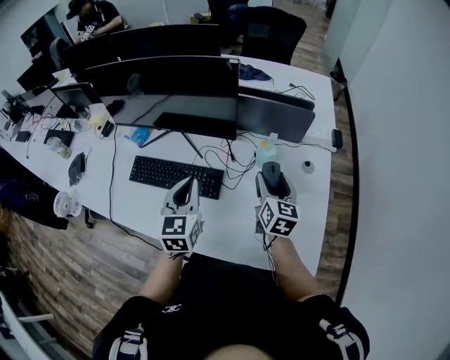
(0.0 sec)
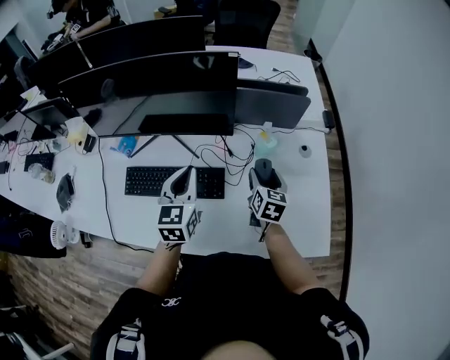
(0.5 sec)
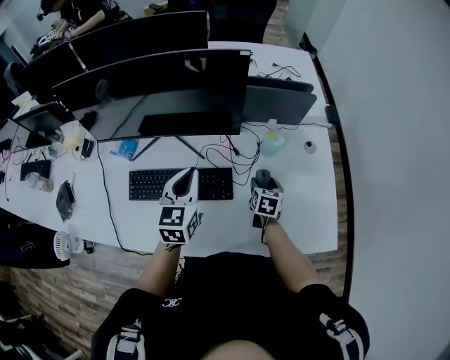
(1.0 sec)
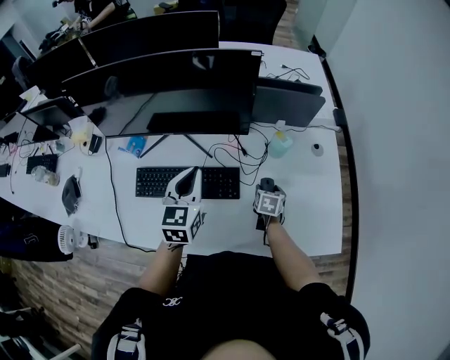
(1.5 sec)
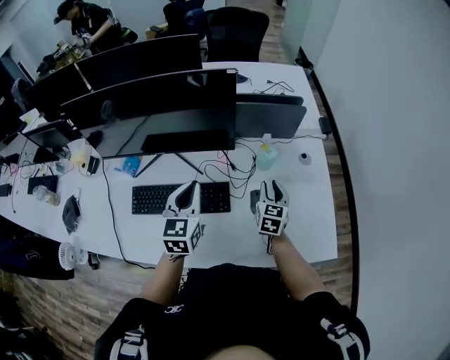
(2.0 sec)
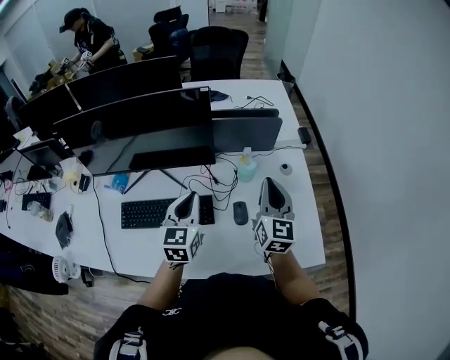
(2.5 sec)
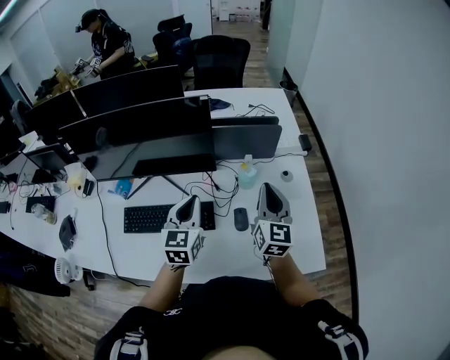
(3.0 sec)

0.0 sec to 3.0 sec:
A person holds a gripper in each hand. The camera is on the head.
0.0 sec to 1.5 sec: The right gripper travels downward by roughly 25 cm, and angles its fingers downward, by about 30 degrees. The left gripper travels to the left and forward by approximately 15 cm.
1.5 sec to 3.0 sec: The right gripper shifts approximately 35 cm upward, points its fingers some 50 degrees further upward, and closes, while the left gripper travels to the right by some 10 cm.

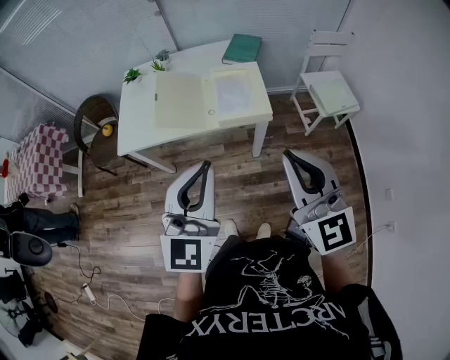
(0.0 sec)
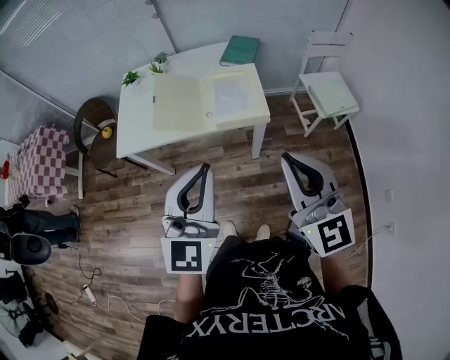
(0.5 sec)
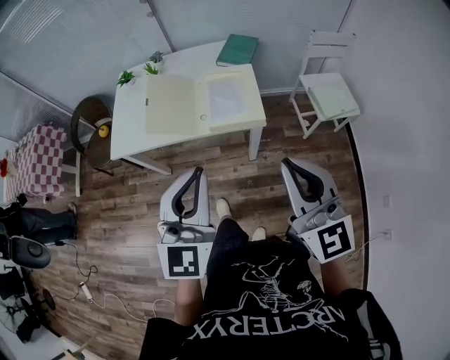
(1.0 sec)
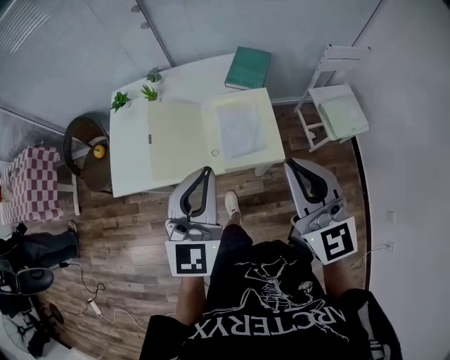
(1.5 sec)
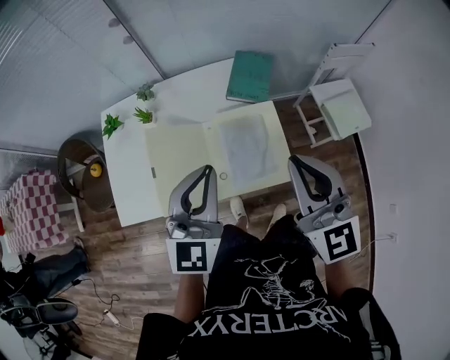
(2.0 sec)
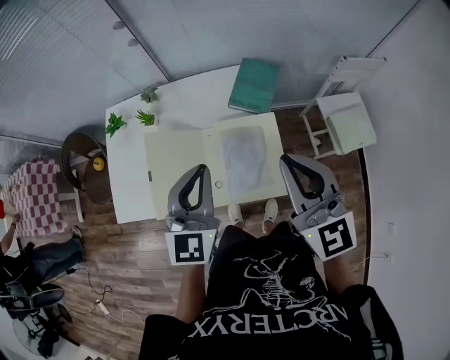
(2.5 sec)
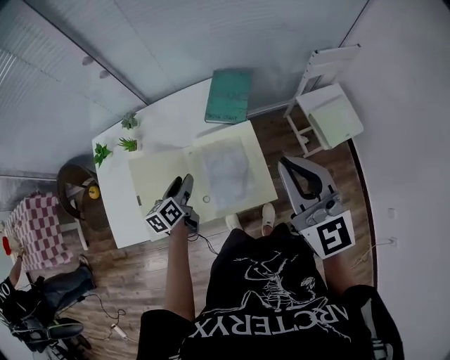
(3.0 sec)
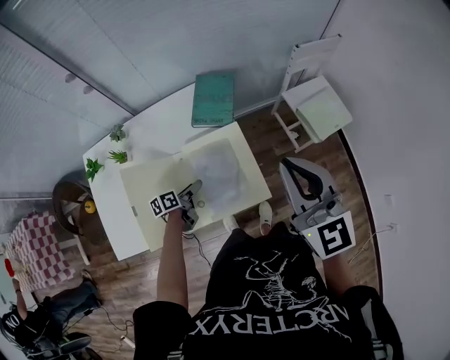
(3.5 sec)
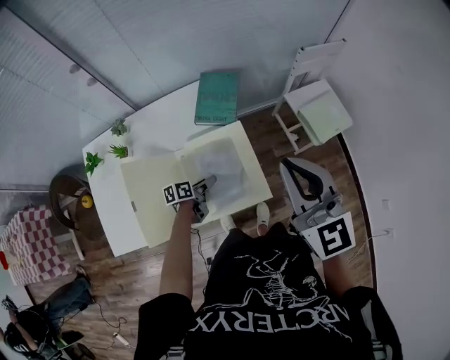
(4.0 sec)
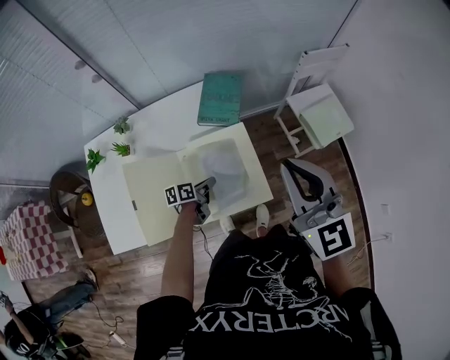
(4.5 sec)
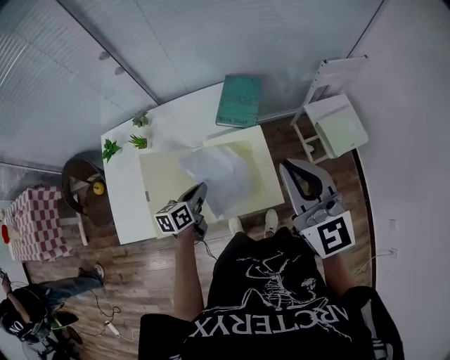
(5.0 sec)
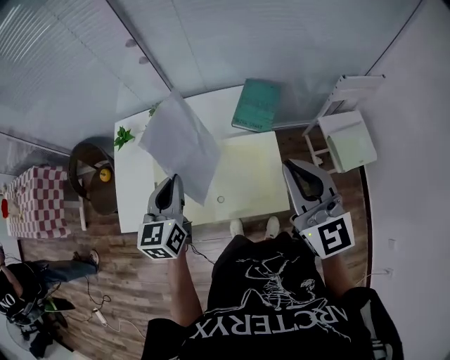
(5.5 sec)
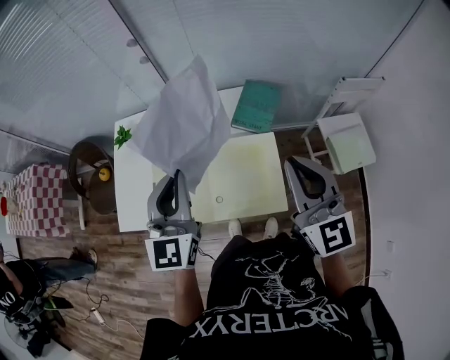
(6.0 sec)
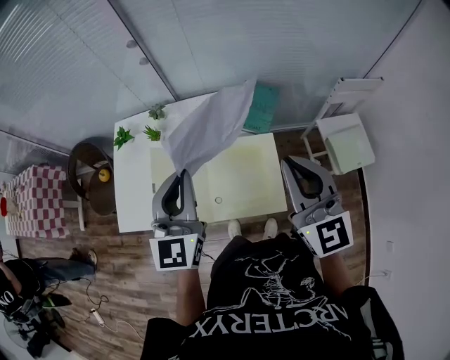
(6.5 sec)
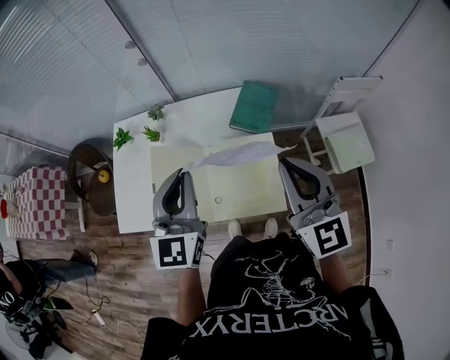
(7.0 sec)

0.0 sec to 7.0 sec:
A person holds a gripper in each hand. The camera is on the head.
0.0 sec to 2.0 sec: Both grippers move forward, about 35 cm.
2.0 sec to 3.5 sec: The right gripper ends up roughly 10 cm from where it was, while the left gripper moves downward, about 35 cm, rolls counterclockwise, seen from behind, by roughly 70 degrees, and opens up.
3.5 sec to 5.0 sec: The left gripper is displaced upward by approximately 10 cm, swivels approximately 20 degrees, and closes up.
5.0 sec to 7.0 sec: The left gripper travels upward by some 30 cm, and swivels roughly 60 degrees.

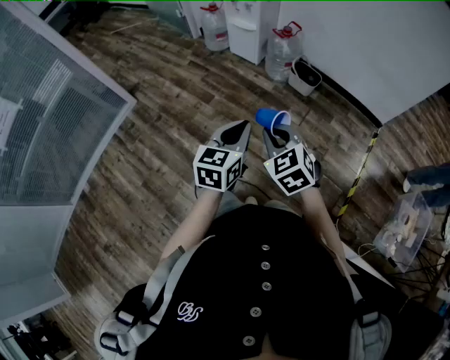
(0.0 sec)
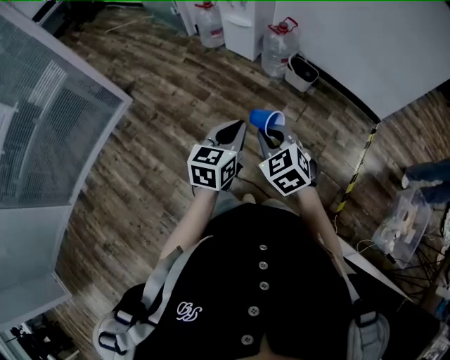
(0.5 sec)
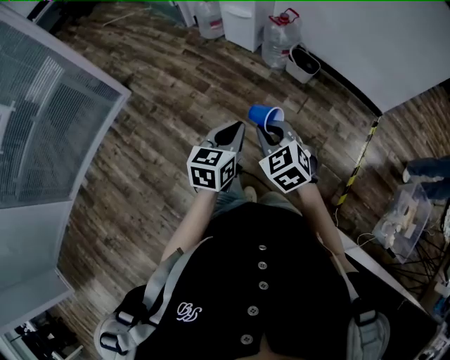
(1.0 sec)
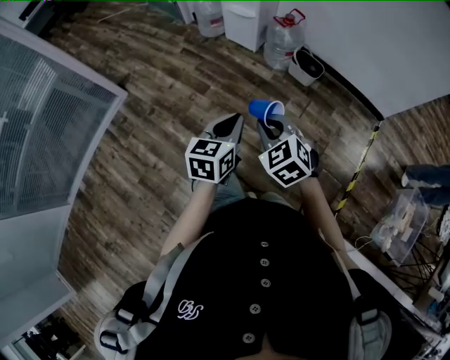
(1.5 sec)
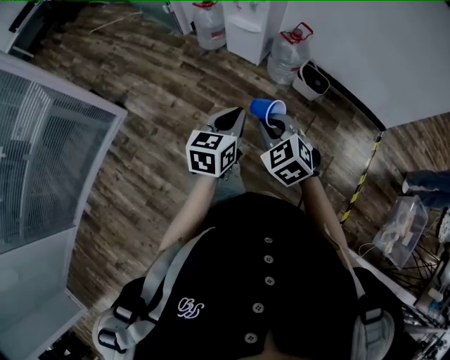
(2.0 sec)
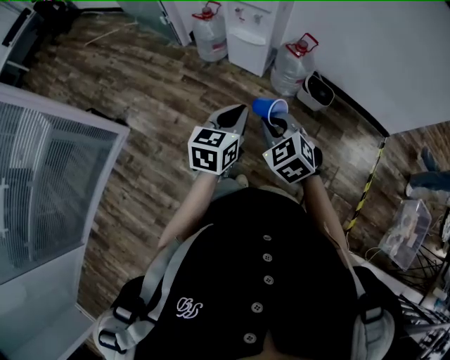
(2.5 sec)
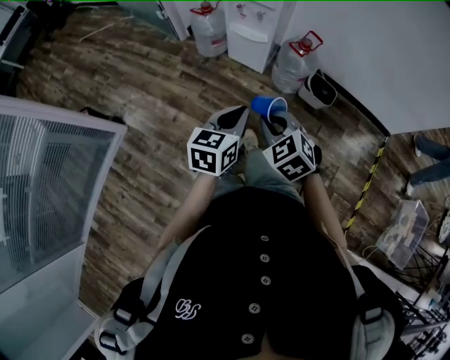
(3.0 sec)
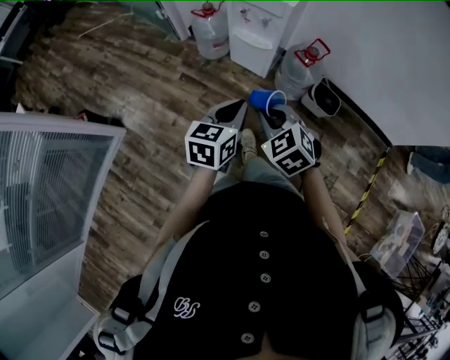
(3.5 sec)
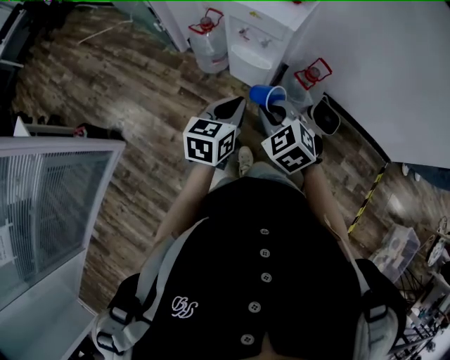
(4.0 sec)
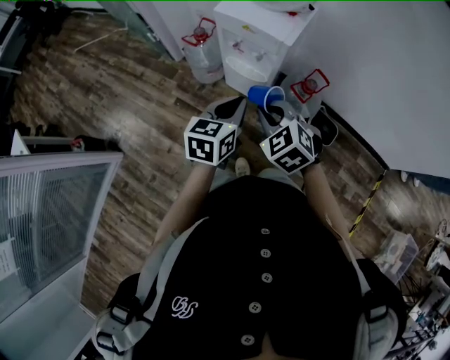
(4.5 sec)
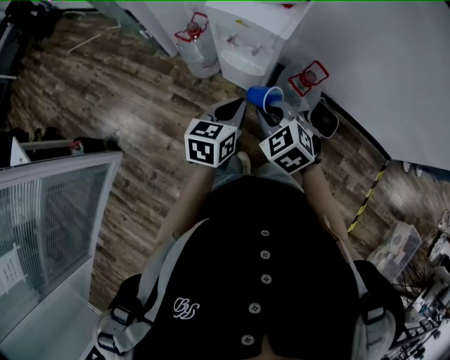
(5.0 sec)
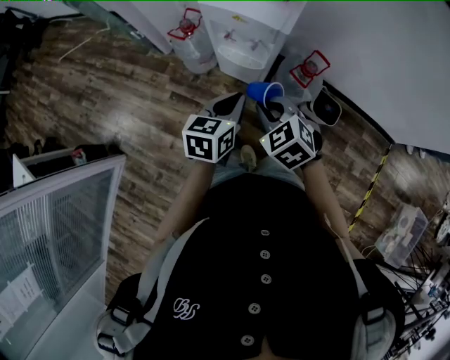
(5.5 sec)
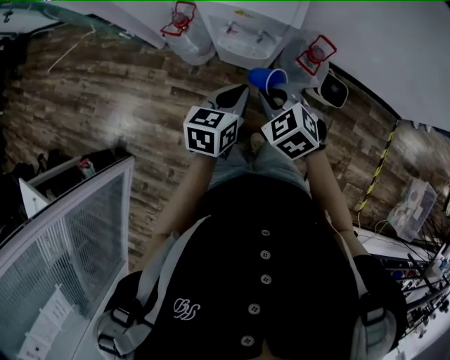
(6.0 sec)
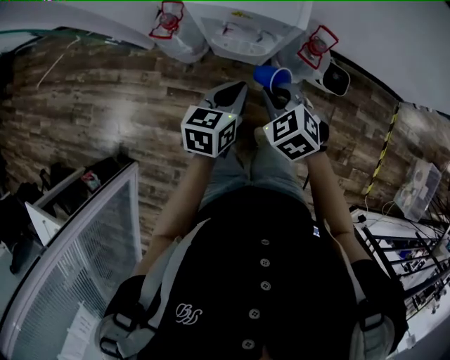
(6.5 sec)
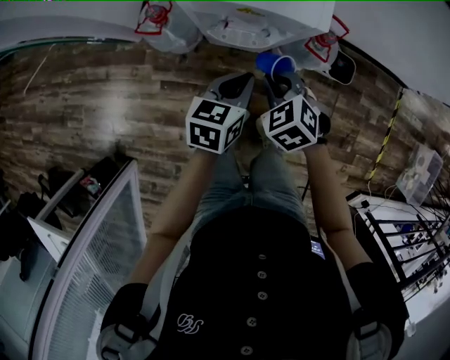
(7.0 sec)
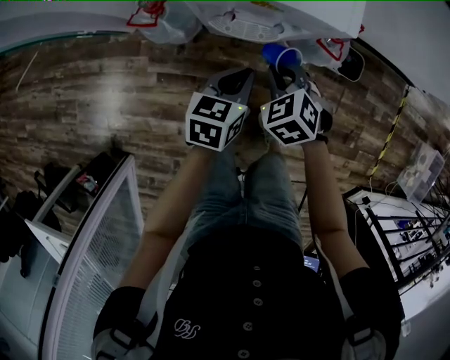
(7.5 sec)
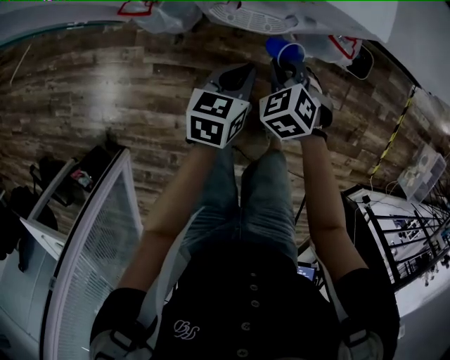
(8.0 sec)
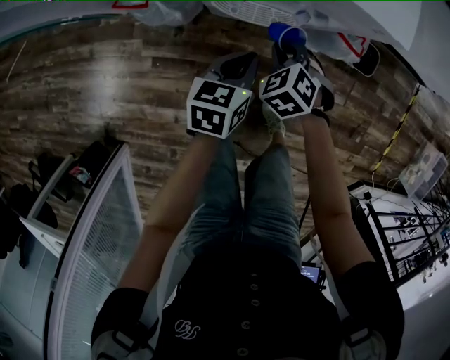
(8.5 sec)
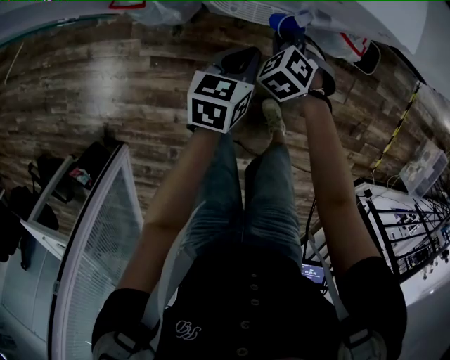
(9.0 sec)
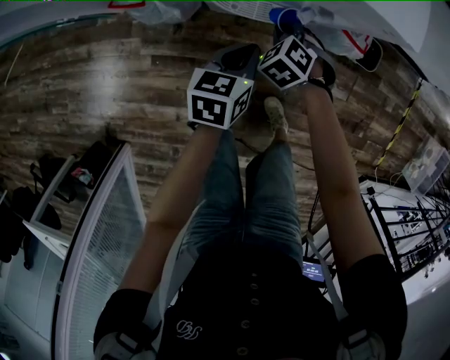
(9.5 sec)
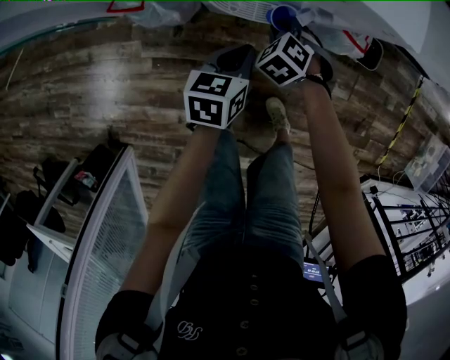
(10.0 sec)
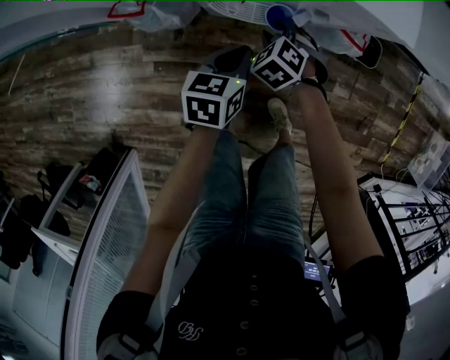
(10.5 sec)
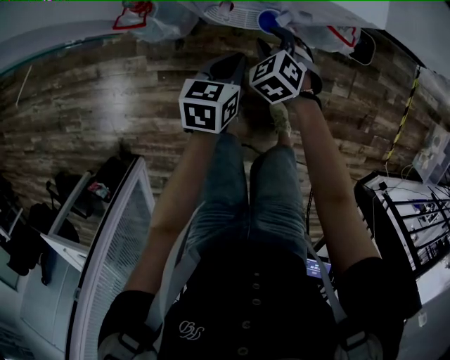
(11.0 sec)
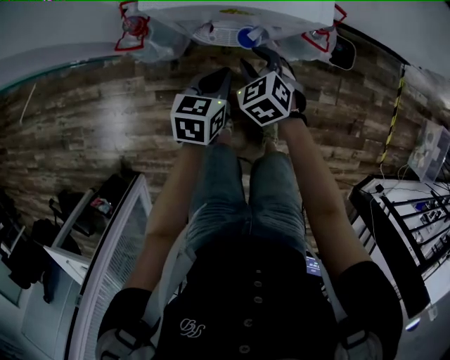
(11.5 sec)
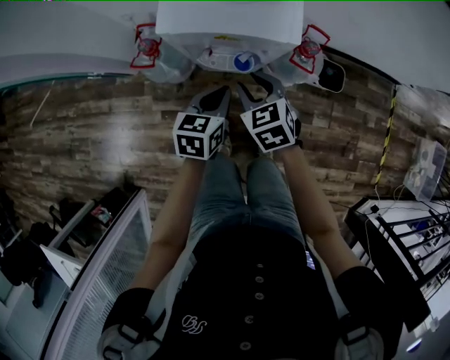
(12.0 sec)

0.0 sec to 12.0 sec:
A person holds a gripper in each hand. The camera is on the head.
0.0 sec to 2.0 sec: Both grippers travel together forward, approximately 25 cm.
2.0 sec to 4.0 sec: Both grippers move forward, roughly 40 cm.
4.0 sec to 6.0 sec: The left gripper travels forward and downward by some 15 cm. Meanwhile the right gripper travels forward by roughly 15 cm.
6.0 sec to 8.0 sec: The left gripper goes some 20 cm downward; the right gripper travels downward and forward by approximately 25 cm, and rotates roughly 20 degrees.
8.0 sec to 10.0 sec: The right gripper shifts some 10 cm downward and forward; the left gripper travels downward by about 5 cm.
10.0 sec to 12.0 sec: The right gripper travels upward by about 25 cm, and turns by approximately 40 degrees, while the left gripper is displaced upward by roughly 15 cm.

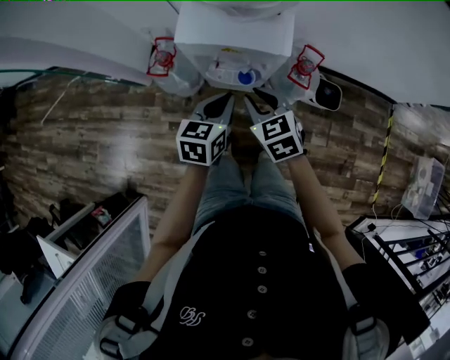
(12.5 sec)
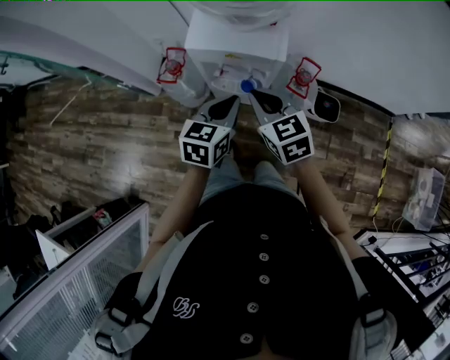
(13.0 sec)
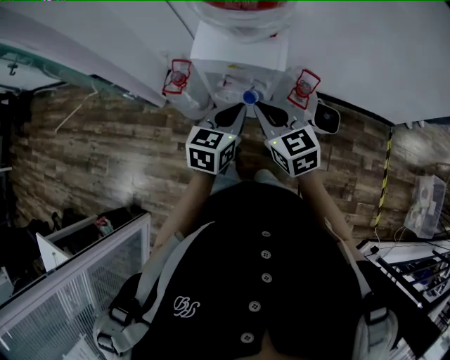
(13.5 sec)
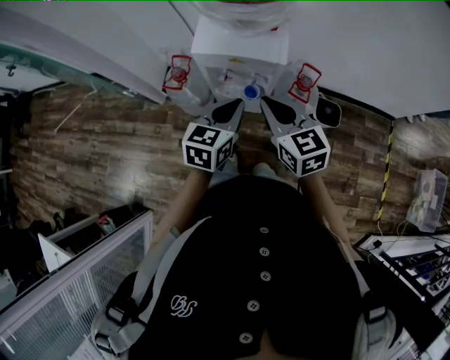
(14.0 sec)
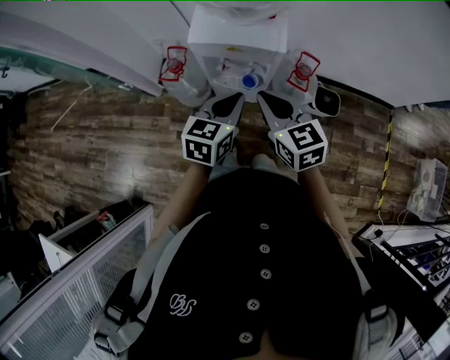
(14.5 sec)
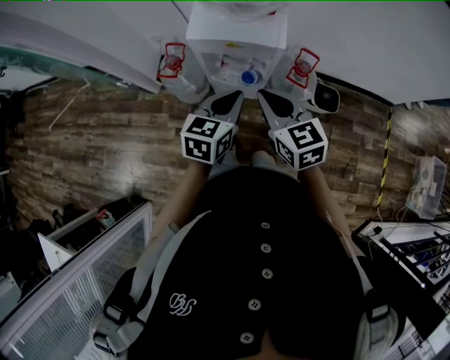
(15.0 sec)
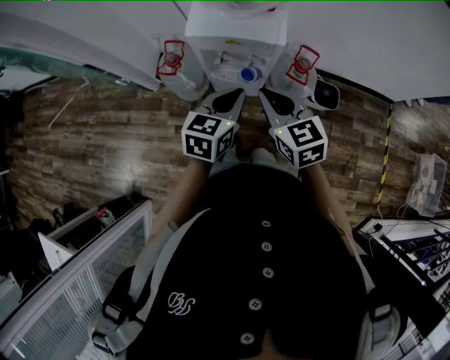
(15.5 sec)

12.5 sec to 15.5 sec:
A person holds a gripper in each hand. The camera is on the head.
12.5 sec to 14.0 sec: Both grippers move upward, some 10 cm. The right gripper rotates roughly 20 degrees, and closes.
14.0 sec to 15.5 sec: The grippers stay close to where they were, moving slightly.

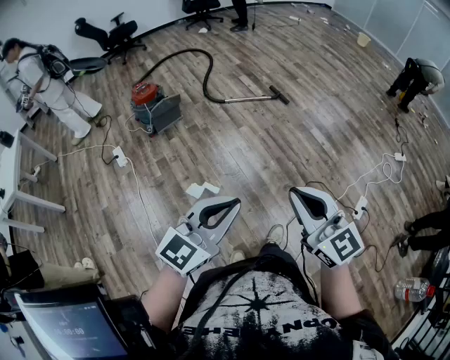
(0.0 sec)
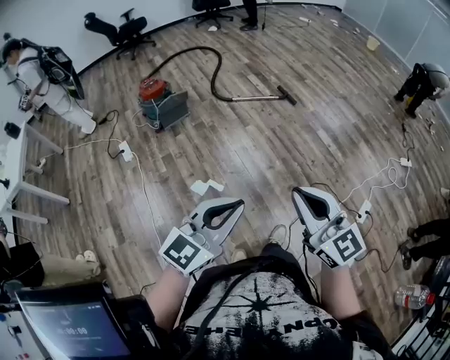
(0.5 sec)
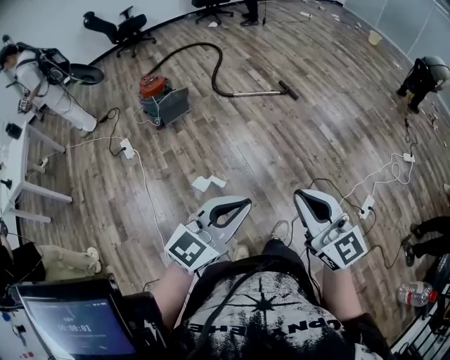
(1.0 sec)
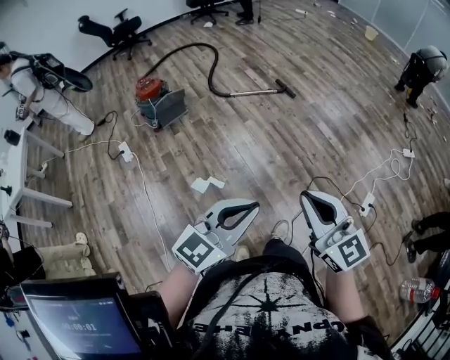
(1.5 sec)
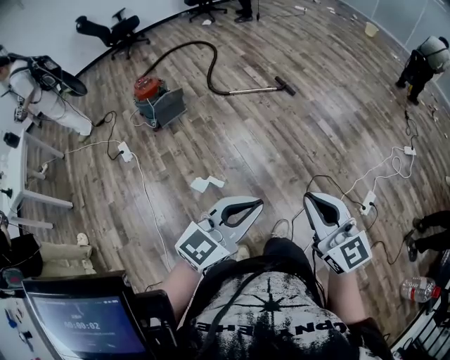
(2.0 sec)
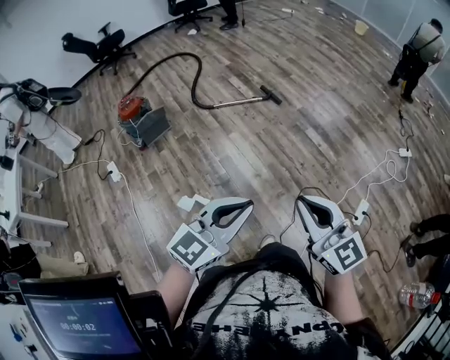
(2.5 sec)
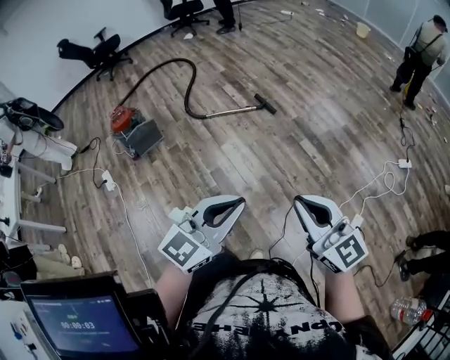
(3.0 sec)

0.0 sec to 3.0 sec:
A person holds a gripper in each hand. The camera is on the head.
0.0 sec to 1.5 sec: There are only small adjustments of the grippers.
1.5 sec to 3.0 sec: Both grippers travel together forward and to the right, approximately 30 cm.
